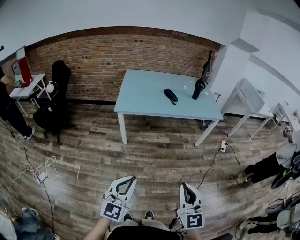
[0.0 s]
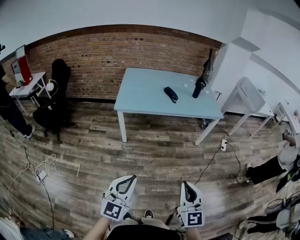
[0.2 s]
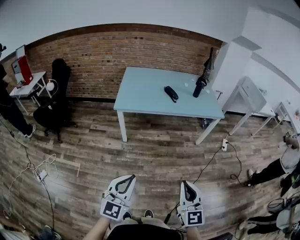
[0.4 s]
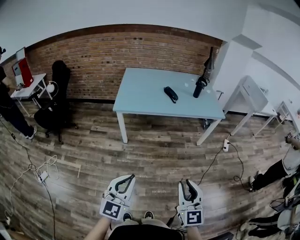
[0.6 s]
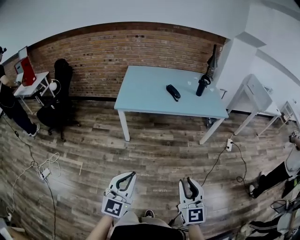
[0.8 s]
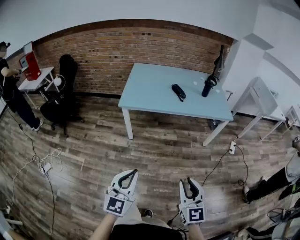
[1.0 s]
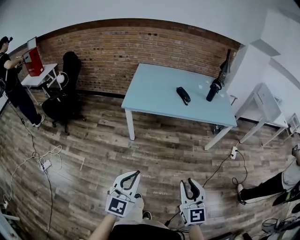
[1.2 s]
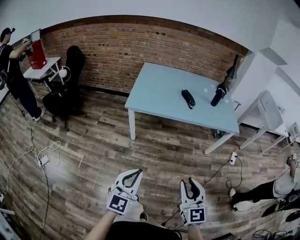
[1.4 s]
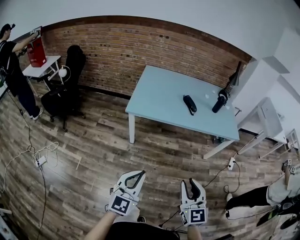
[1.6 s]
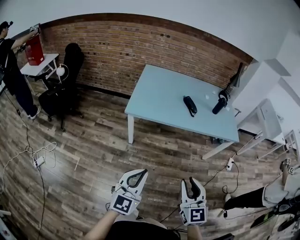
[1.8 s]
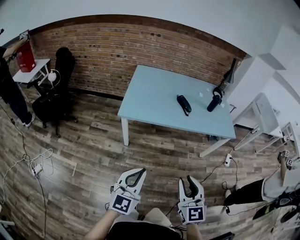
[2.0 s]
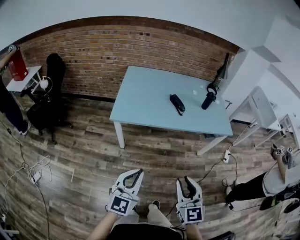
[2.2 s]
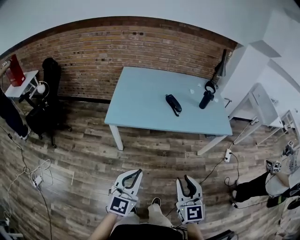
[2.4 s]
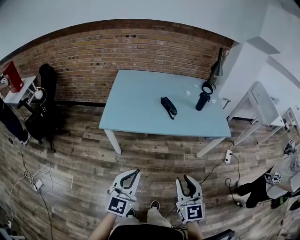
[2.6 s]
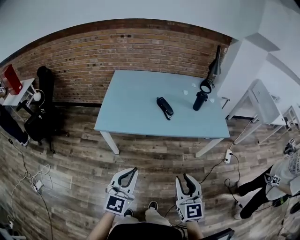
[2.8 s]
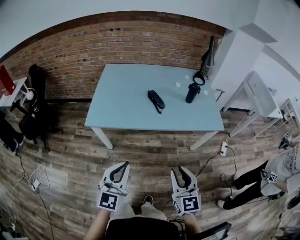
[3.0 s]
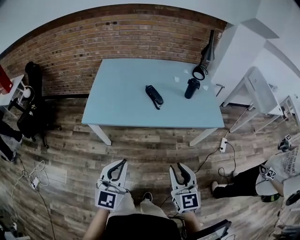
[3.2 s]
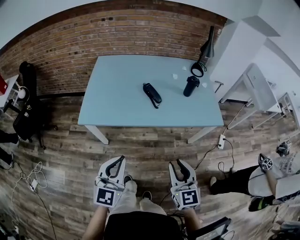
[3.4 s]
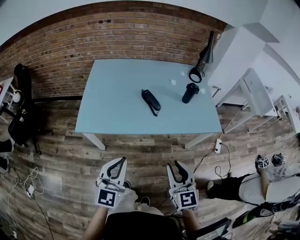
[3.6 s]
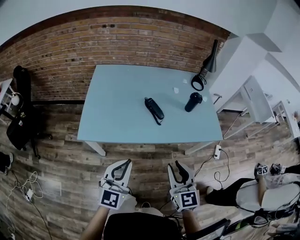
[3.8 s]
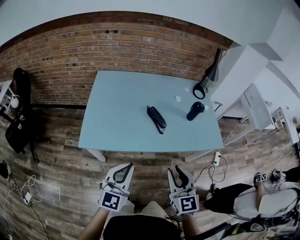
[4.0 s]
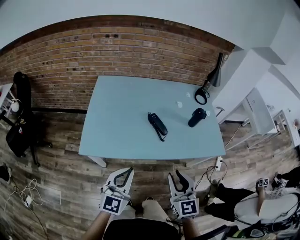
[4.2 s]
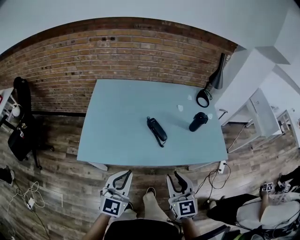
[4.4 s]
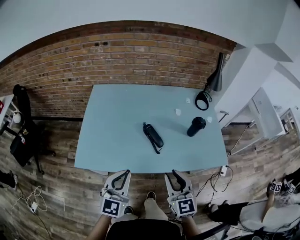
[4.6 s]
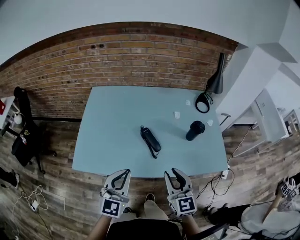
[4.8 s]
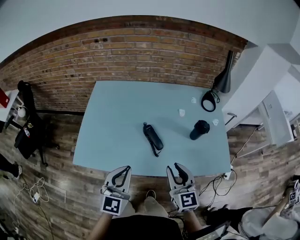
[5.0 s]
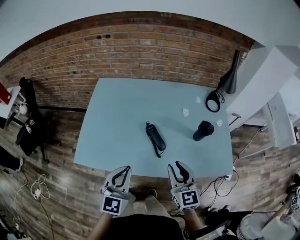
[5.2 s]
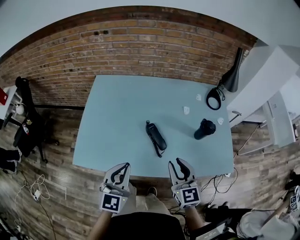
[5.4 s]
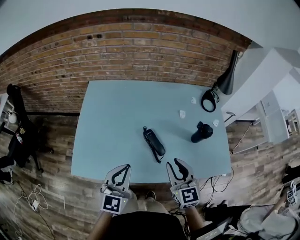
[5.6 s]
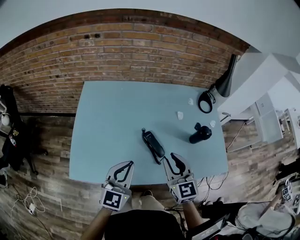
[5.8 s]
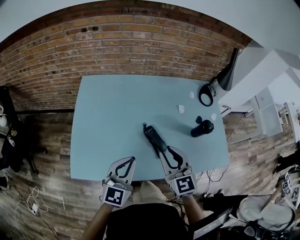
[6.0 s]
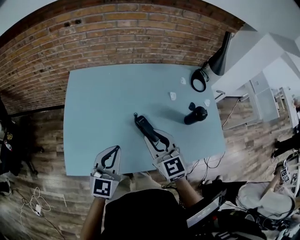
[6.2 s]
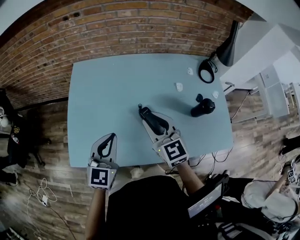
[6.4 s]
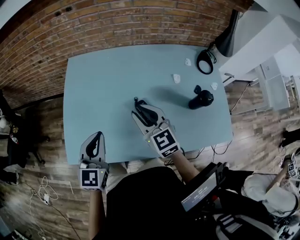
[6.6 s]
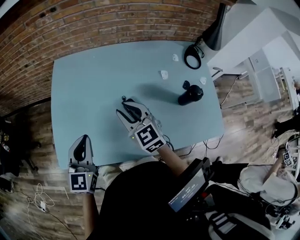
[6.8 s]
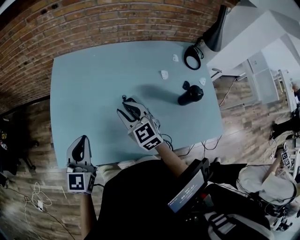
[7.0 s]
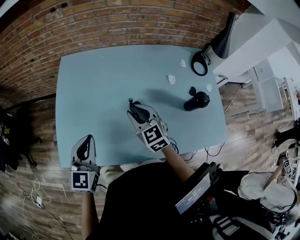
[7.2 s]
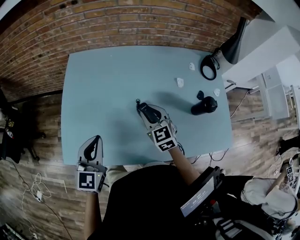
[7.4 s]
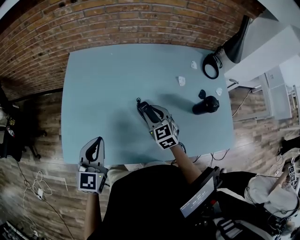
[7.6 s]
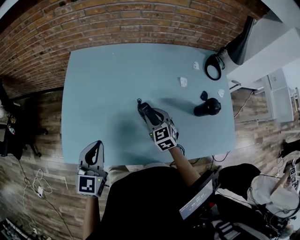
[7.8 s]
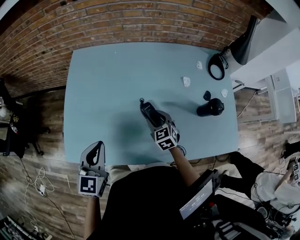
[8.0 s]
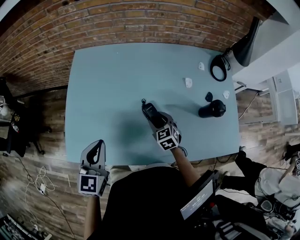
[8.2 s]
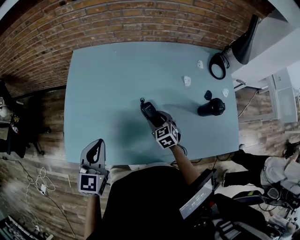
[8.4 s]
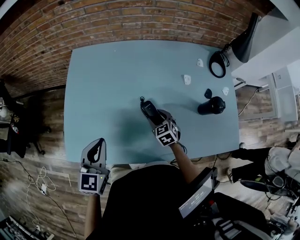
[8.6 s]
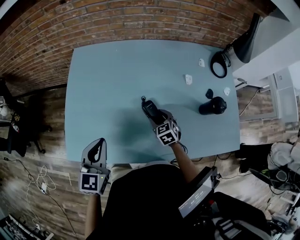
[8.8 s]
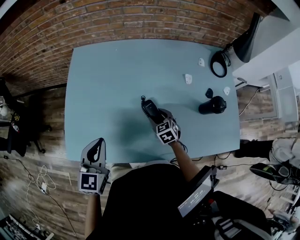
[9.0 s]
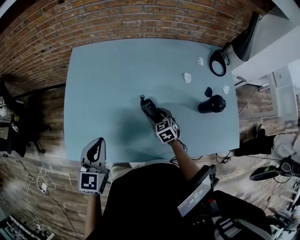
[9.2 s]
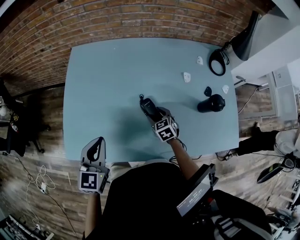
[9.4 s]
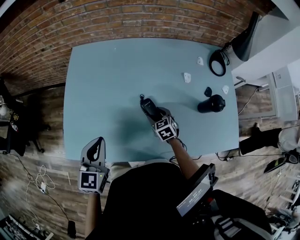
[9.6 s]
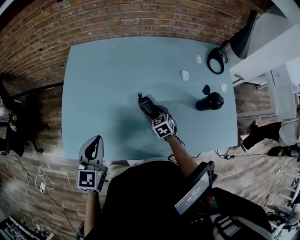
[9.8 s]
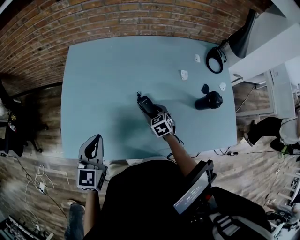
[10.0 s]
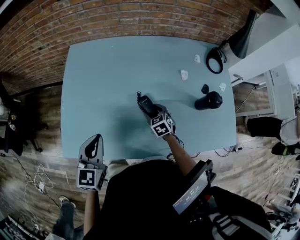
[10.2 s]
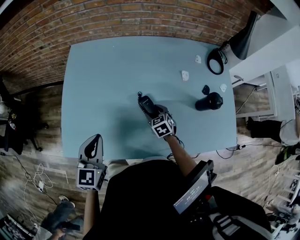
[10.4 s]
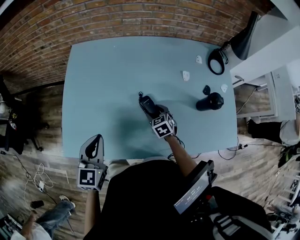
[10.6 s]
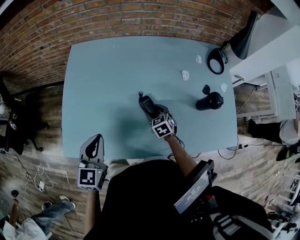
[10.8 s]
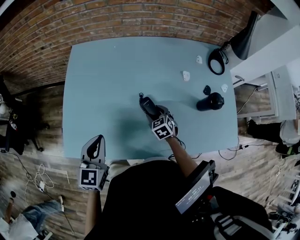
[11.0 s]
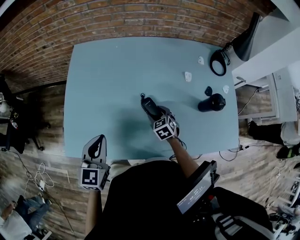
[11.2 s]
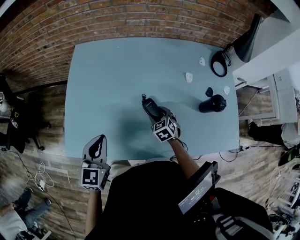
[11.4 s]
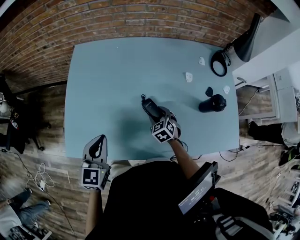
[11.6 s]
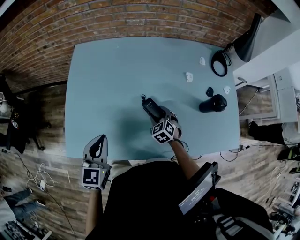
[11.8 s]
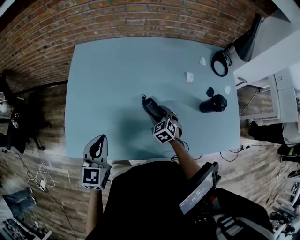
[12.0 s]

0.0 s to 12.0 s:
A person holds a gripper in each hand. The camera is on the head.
0.0 to 1.6 s: The grippers both shift forward by about 20 cm. The right gripper opens up.
1.6 to 3.0 s: Both grippers move forward and to the right, approximately 25 cm.
3.0 to 4.4 s: The two grippers go roughly 25 cm forward.
4.4 to 6.0 s: The two grippers go about 25 cm forward.
6.0 to 7.6 s: The left gripper is displaced to the left and downward by approximately 10 cm, while the right gripper shifts roughly 20 cm downward and forward.
7.6 to 9.0 s: The right gripper travels downward by approximately 10 cm, and opens up.
9.0 to 12.0 s: There are only small adjustments of the grippers.

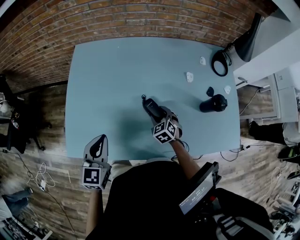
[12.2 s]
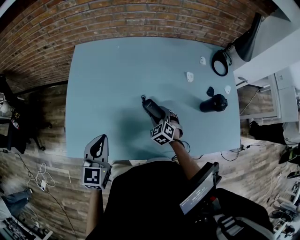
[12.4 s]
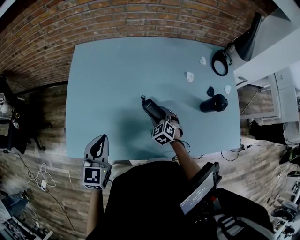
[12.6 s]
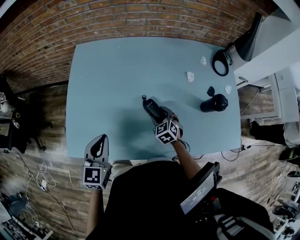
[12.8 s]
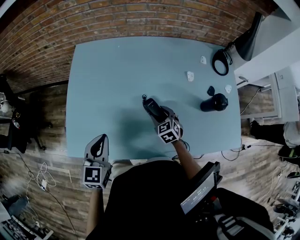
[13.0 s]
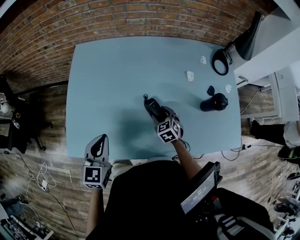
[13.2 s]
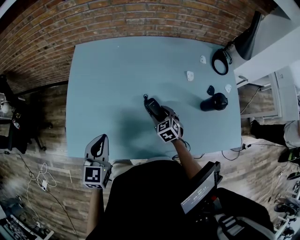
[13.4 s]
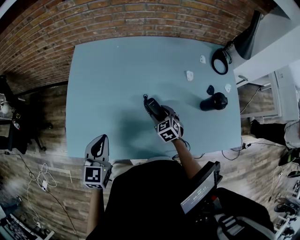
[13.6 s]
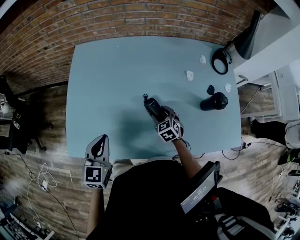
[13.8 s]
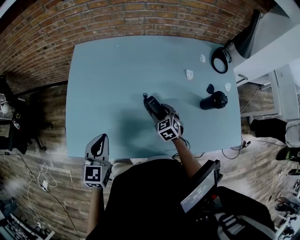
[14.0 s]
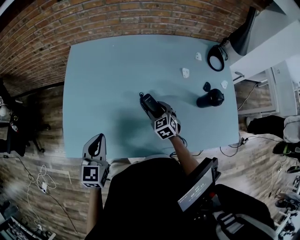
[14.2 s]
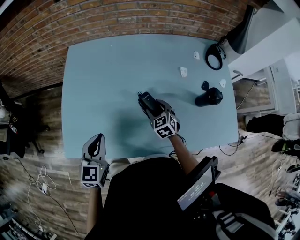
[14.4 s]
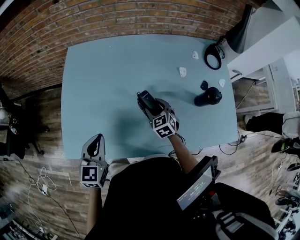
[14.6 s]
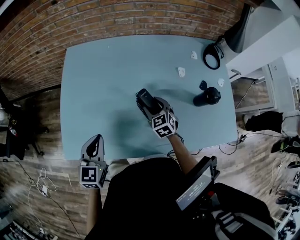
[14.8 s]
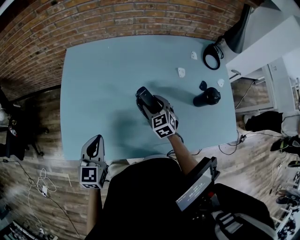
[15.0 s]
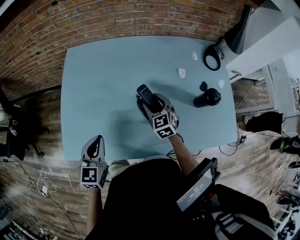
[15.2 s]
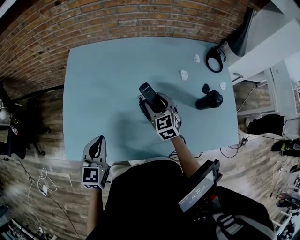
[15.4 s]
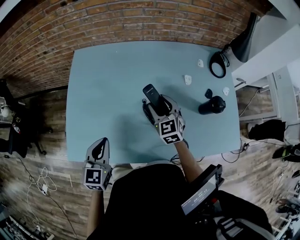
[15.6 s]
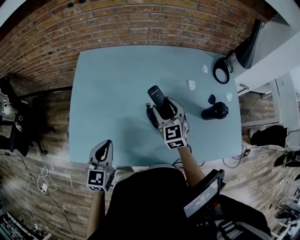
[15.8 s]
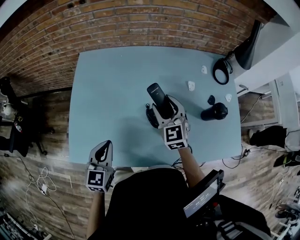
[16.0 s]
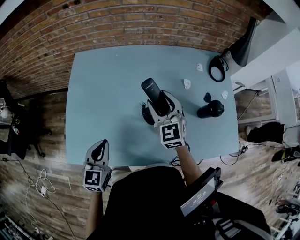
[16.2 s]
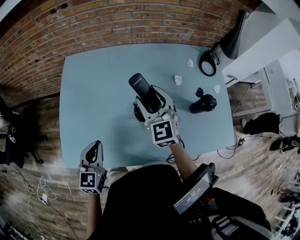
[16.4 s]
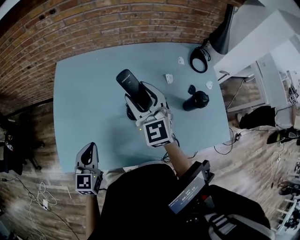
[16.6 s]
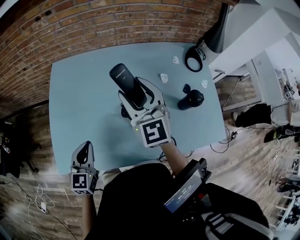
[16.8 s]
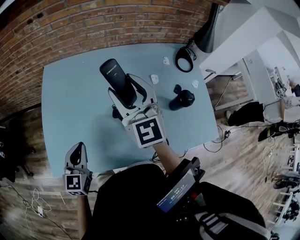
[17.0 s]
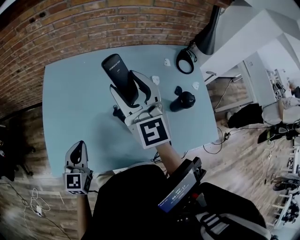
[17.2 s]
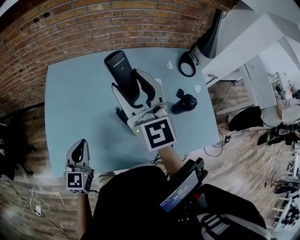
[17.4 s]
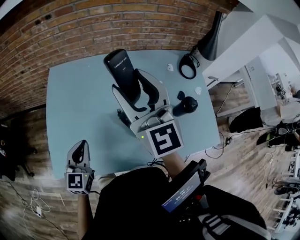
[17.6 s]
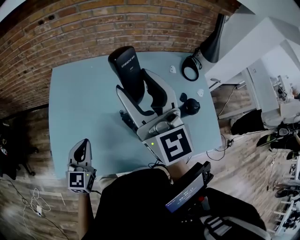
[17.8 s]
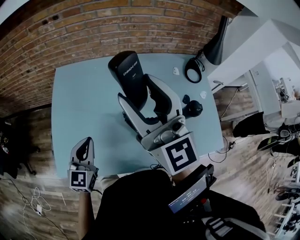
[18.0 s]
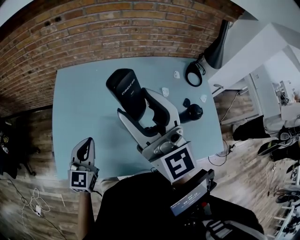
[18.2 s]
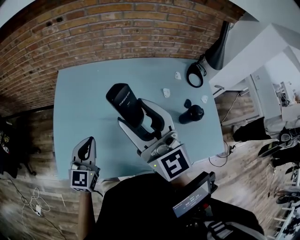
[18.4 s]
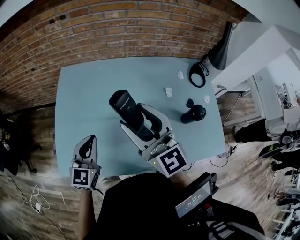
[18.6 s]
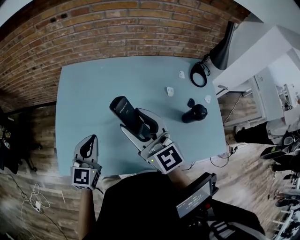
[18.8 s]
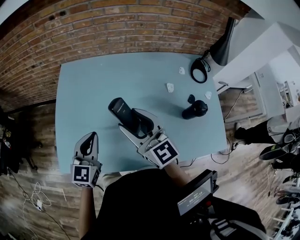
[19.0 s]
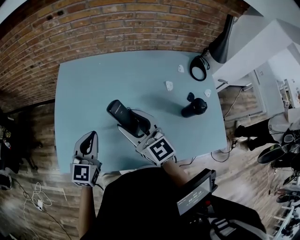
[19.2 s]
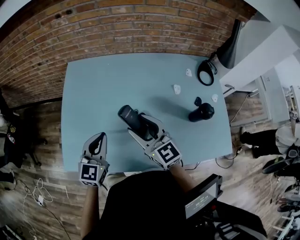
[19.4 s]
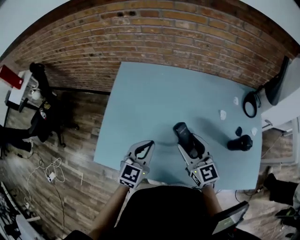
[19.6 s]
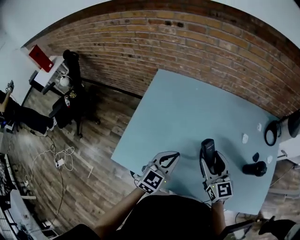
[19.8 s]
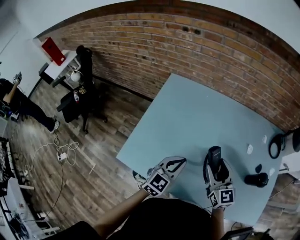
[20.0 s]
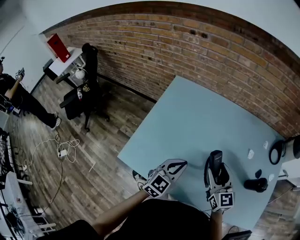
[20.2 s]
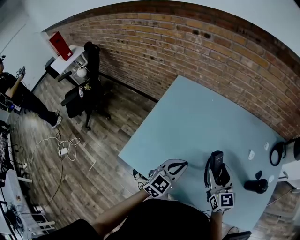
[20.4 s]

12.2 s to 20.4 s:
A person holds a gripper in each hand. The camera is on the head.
12.2 to 13.8 s: The grippers move only a little.
13.8 to 15.4 s: The right gripper goes roughly 10 cm upward.
15.4 to 17.2 s: The right gripper travels upward by roughly 25 cm, and tilts its fingers roughly 30 degrees upward.
17.2 to 18.8 s: The right gripper goes roughly 10 cm backward and to the left, and travels upward and back again, about 10 cm each way.
18.8 to 20.4 s: The left gripper ends up approximately 5 cm from where it was; the right gripper travels downward by some 15 cm.

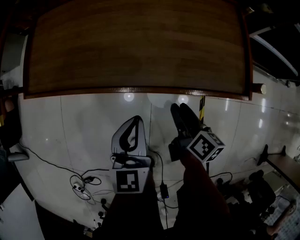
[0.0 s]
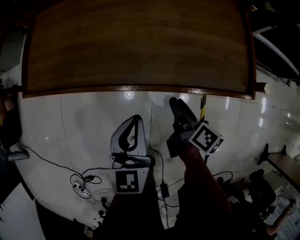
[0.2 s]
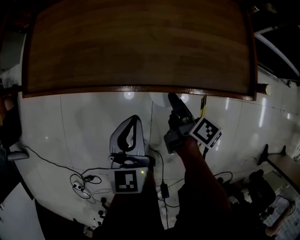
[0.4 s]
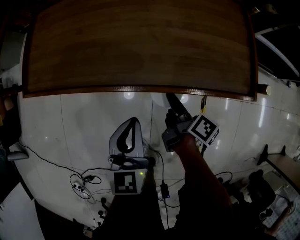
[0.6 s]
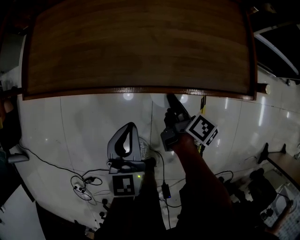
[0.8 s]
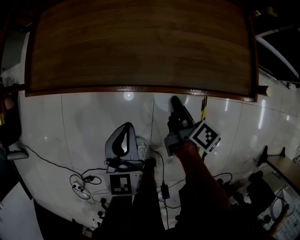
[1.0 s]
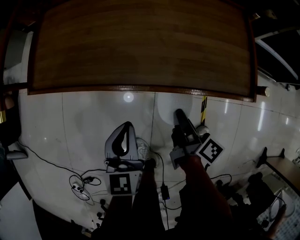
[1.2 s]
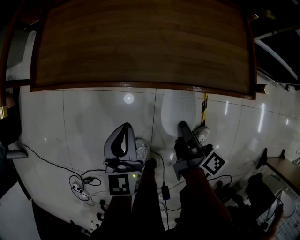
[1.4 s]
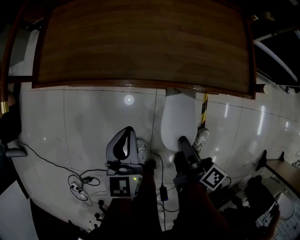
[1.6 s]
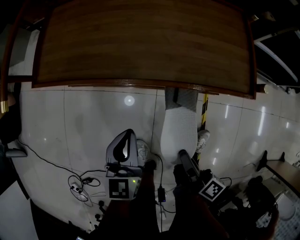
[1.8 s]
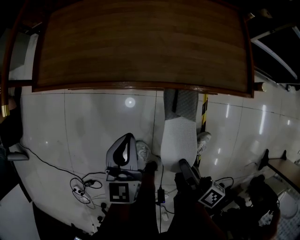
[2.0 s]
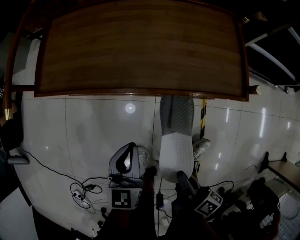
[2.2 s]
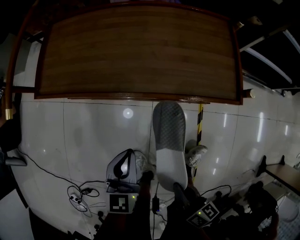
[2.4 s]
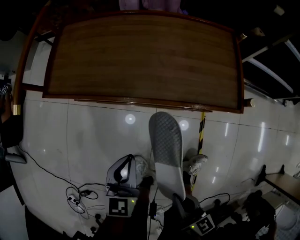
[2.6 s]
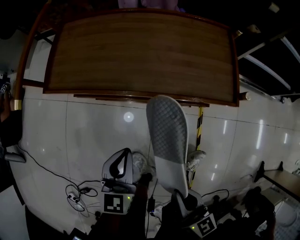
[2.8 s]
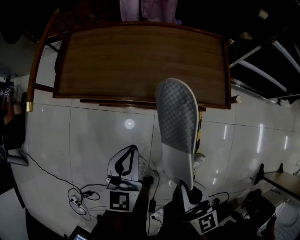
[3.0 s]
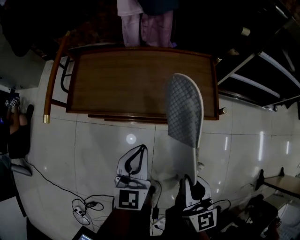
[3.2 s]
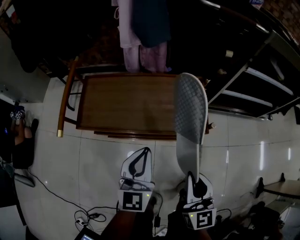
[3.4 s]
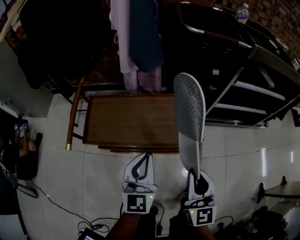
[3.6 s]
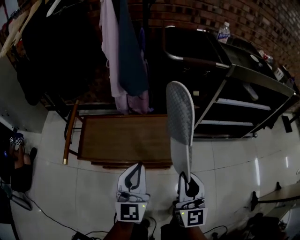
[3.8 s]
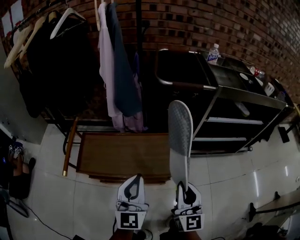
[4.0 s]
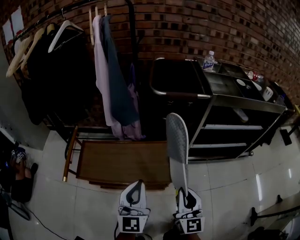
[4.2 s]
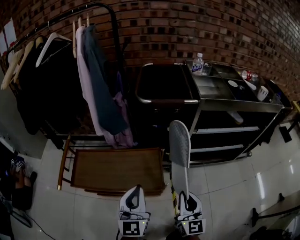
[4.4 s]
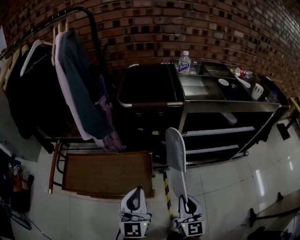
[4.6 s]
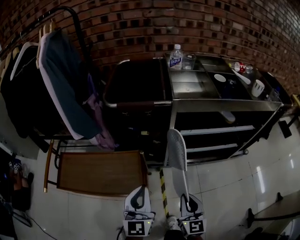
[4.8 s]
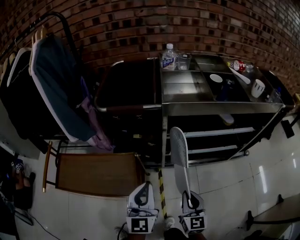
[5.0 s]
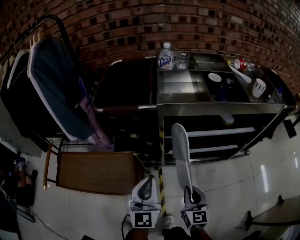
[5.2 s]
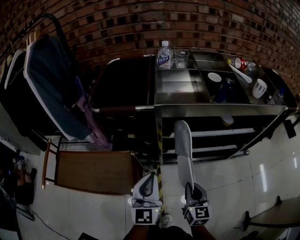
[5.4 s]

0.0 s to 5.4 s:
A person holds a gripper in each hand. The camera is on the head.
0.0 to 1.4 s: The left gripper shifts roughly 5 cm to the left, while the right gripper moves backward, approximately 5 cm, turns by about 20 degrees, and closes up.
1.4 to 2.8 s: The left gripper shifts about 5 cm backward, while the right gripper travels backward and upward by roughly 20 cm, and rotates around the line of its fingers by some 50 degrees, counterclockwise from behind.
2.8 to 4.0 s: The right gripper shifts roughly 35 cm upward and forward, and swivels about 50 degrees. The left gripper heads upward, covering roughly 35 cm, and changes its angle by roughly 30 degrees.
4.0 to 5.4 s: The two grippers go about 35 cm to the right and forward. The right gripper rotates about 20 degrees.
